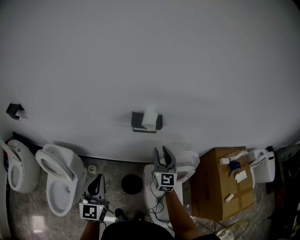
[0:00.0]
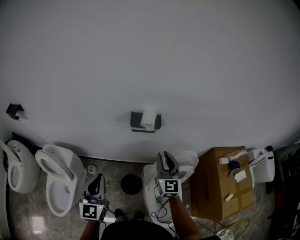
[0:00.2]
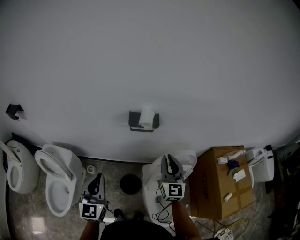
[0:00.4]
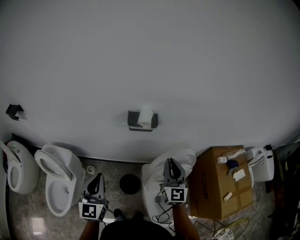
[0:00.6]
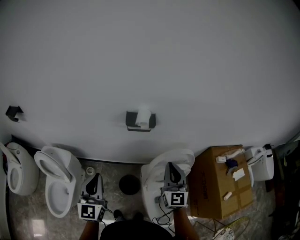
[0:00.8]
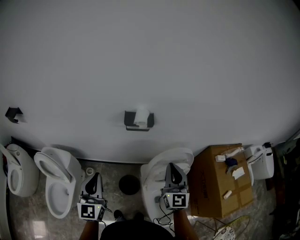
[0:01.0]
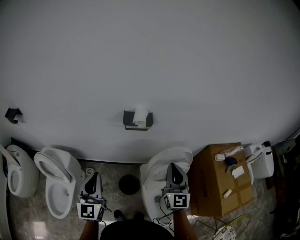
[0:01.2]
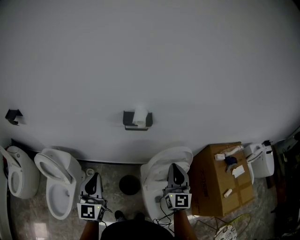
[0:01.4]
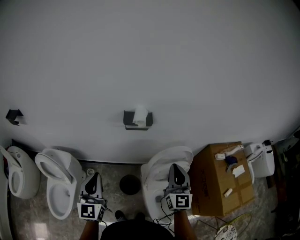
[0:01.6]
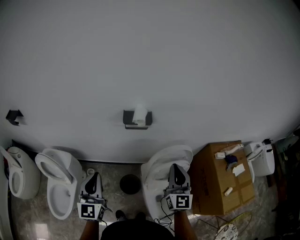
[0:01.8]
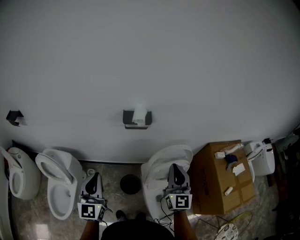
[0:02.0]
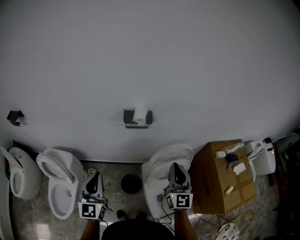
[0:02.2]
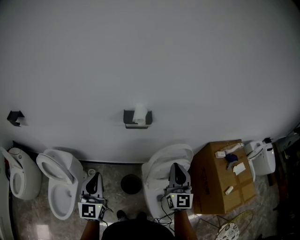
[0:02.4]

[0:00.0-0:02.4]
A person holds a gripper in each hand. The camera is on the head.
0:00.0 to 0:01.2: The right gripper travels backward, to the right and upward by roughly 15 cm.
0:01.2 to 0:02.4: The grippers move only a little.

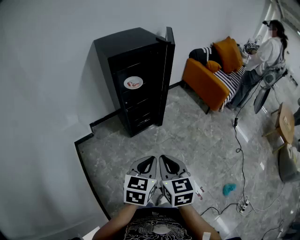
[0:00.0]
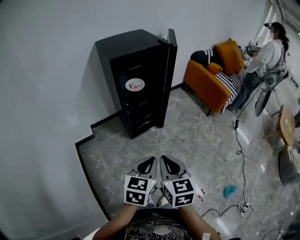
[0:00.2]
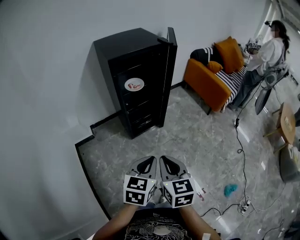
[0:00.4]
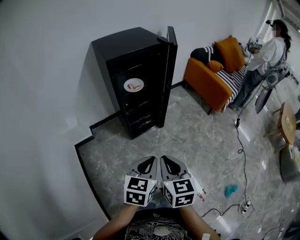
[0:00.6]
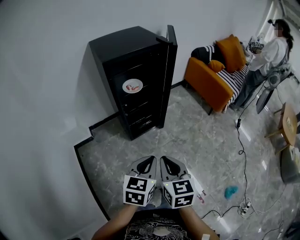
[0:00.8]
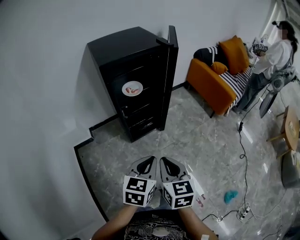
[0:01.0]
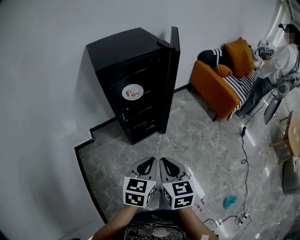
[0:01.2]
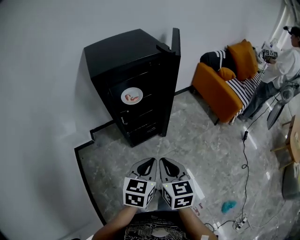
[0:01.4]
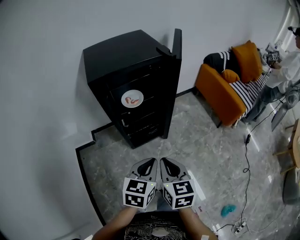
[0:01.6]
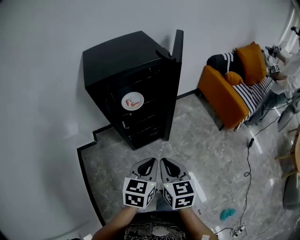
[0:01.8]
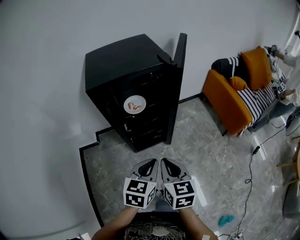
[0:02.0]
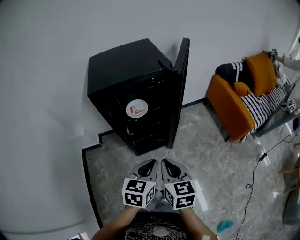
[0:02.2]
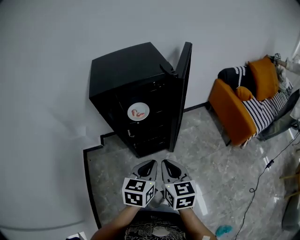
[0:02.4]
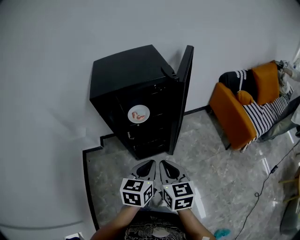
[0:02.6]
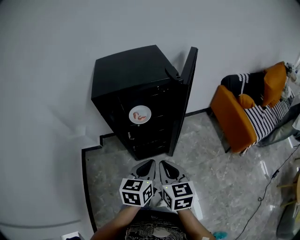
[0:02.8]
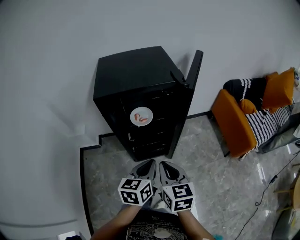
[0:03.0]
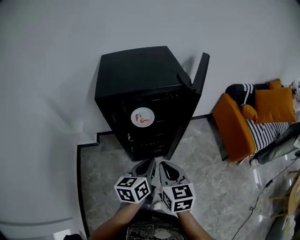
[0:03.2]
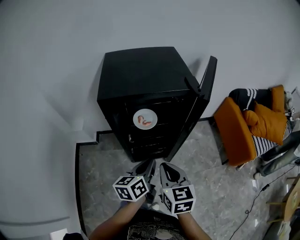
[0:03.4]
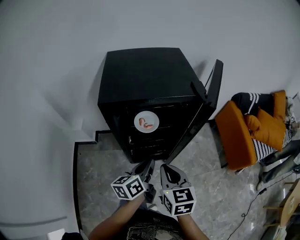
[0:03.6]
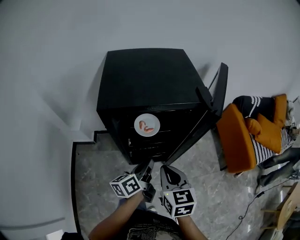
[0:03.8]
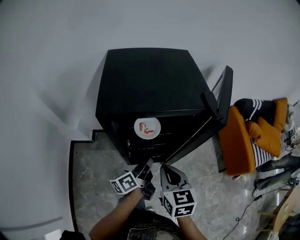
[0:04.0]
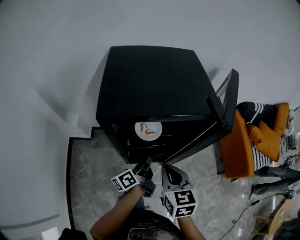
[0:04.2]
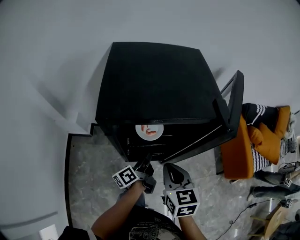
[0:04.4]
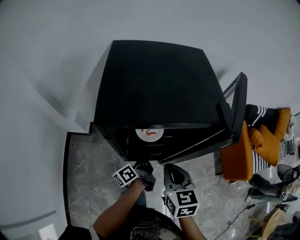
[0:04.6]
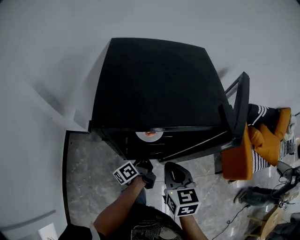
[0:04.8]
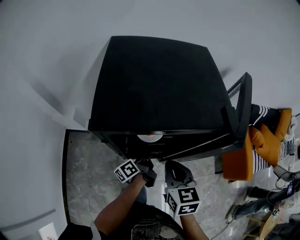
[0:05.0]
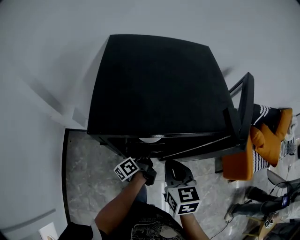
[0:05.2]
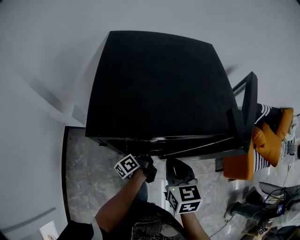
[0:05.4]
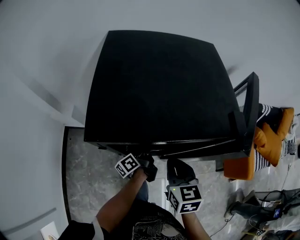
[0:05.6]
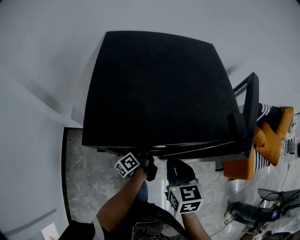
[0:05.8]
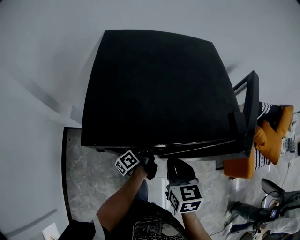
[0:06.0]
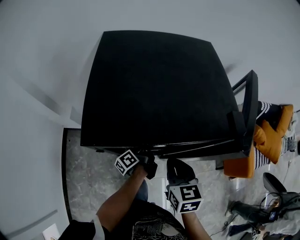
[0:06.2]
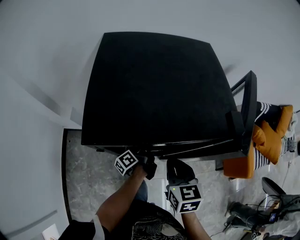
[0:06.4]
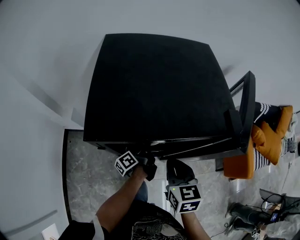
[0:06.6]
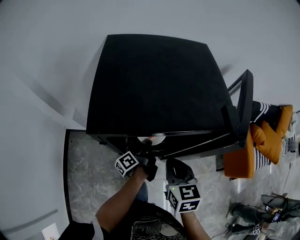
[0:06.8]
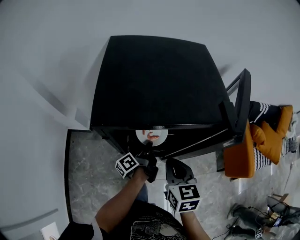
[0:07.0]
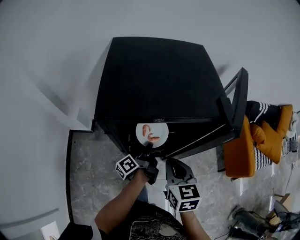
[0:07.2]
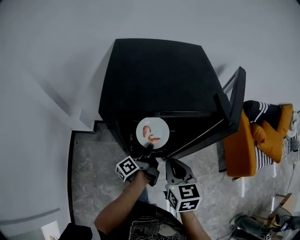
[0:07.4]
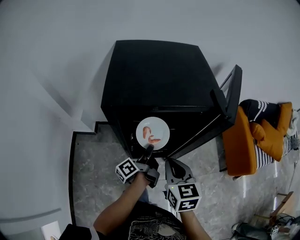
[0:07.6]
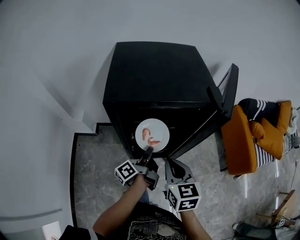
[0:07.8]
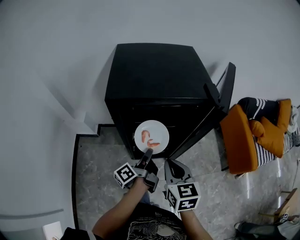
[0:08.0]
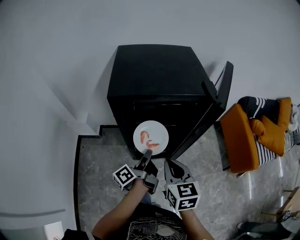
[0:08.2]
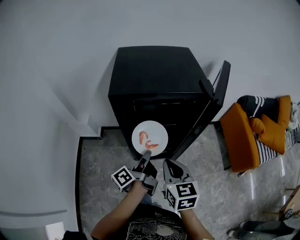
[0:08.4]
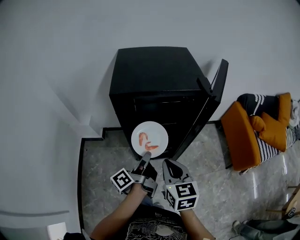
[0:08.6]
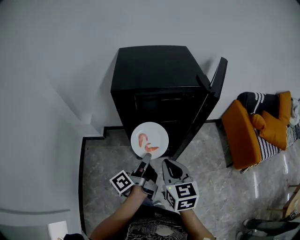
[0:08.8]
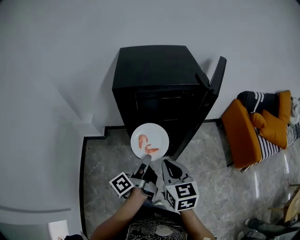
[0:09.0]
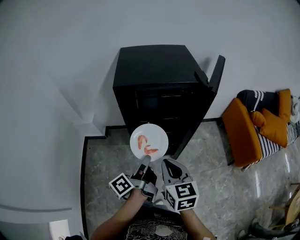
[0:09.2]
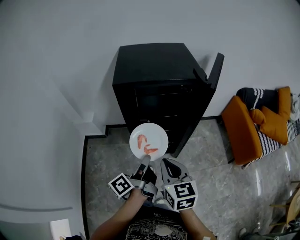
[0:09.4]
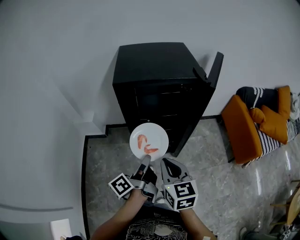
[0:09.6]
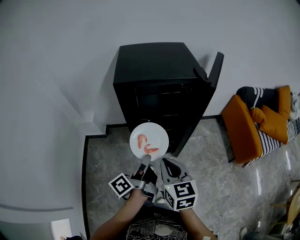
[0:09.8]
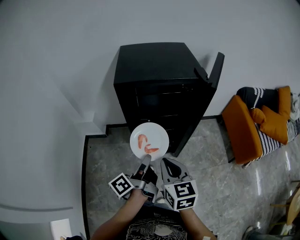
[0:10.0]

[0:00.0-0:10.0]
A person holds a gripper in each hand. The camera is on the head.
0:00.0 to 0:01.4: Both grippers travel together forward, about 20 cm.
0:01.4 to 0:02.8: The right gripper goes roughly 15 cm forward and to the right. The left gripper goes about 15 cm forward.
0:02.8 to 0:04.2: The left gripper is displaced forward and downward by about 25 cm, and rotates around the line of its fingers by roughly 60 degrees, counterclockwise from behind; the right gripper shifts some 15 cm forward.
0:04.2 to 0:05.8: The right gripper heads forward, covering about 10 cm; the left gripper moves forward and downward, roughly 15 cm.
0:05.8 to 0:07.2: The left gripper goes about 10 cm upward and backward, while the right gripper heads backward, covering approximately 5 cm.
0:07.2 to 0:08.6: The left gripper moves backward and upward, about 20 cm, while the right gripper heads backward, covering about 15 cm.
0:08.6 to 0:10.0: The two grippers go approximately 5 cm backward.

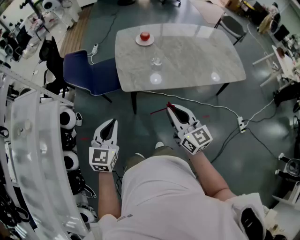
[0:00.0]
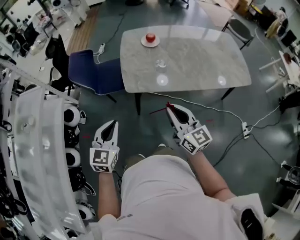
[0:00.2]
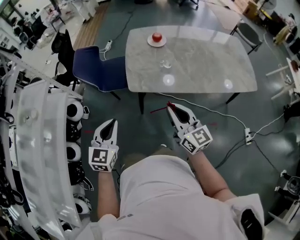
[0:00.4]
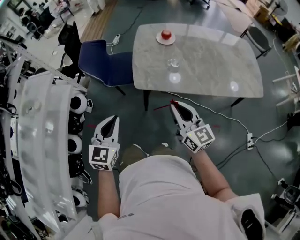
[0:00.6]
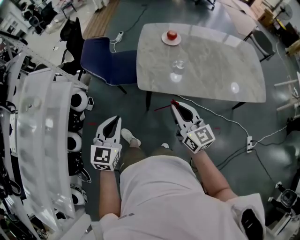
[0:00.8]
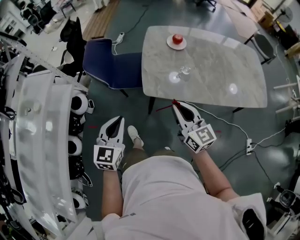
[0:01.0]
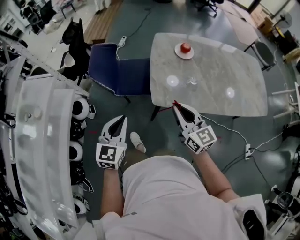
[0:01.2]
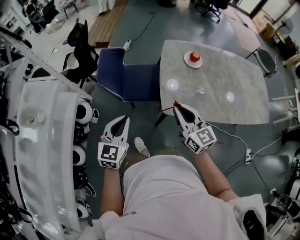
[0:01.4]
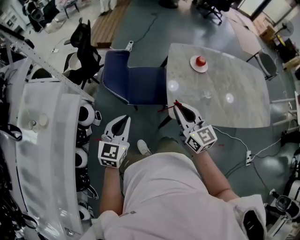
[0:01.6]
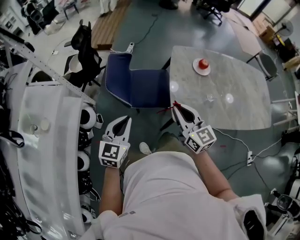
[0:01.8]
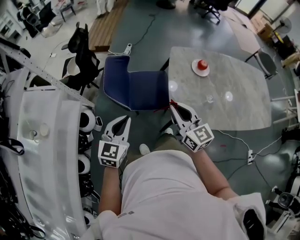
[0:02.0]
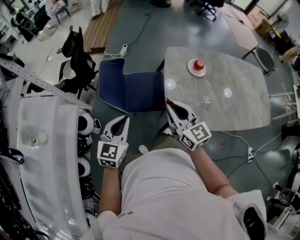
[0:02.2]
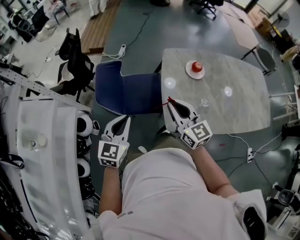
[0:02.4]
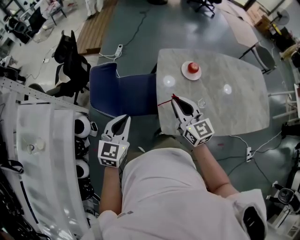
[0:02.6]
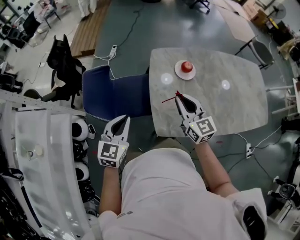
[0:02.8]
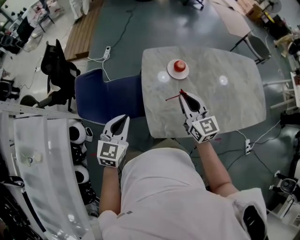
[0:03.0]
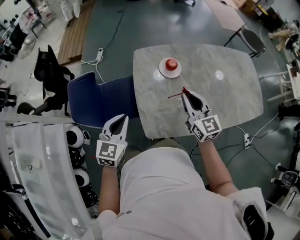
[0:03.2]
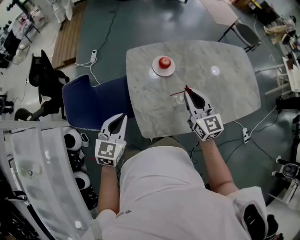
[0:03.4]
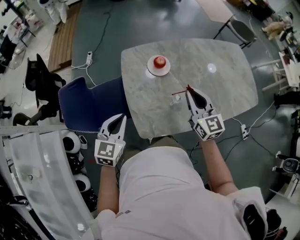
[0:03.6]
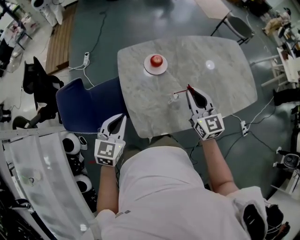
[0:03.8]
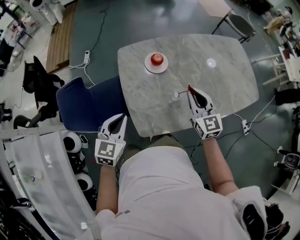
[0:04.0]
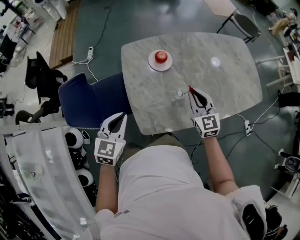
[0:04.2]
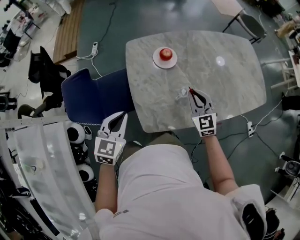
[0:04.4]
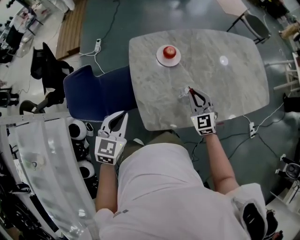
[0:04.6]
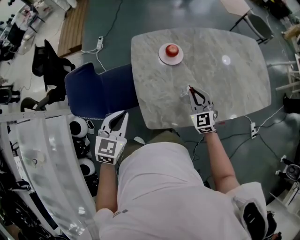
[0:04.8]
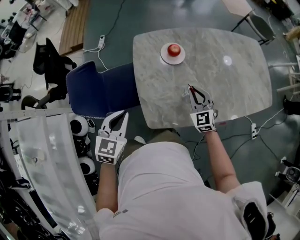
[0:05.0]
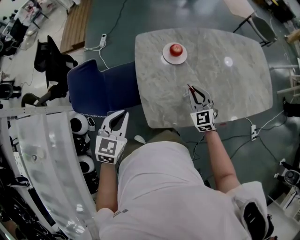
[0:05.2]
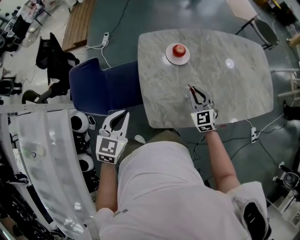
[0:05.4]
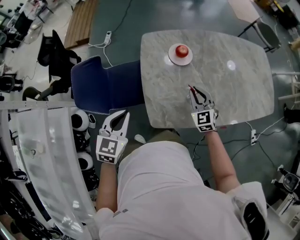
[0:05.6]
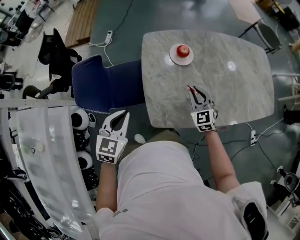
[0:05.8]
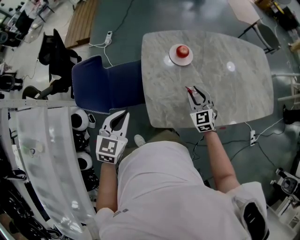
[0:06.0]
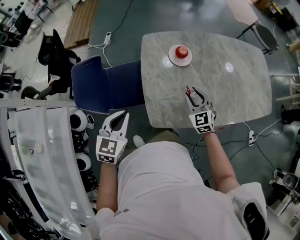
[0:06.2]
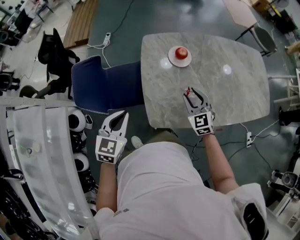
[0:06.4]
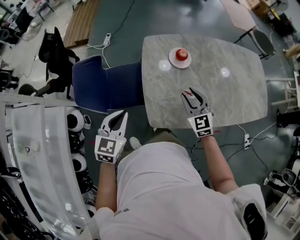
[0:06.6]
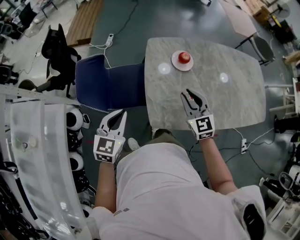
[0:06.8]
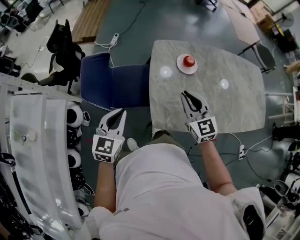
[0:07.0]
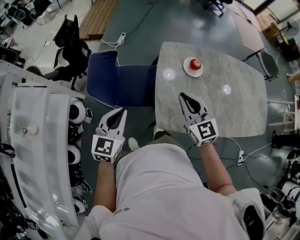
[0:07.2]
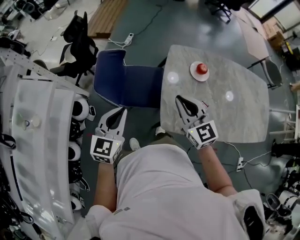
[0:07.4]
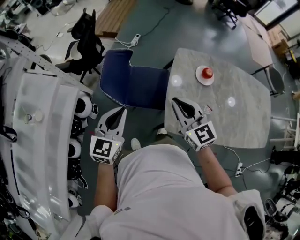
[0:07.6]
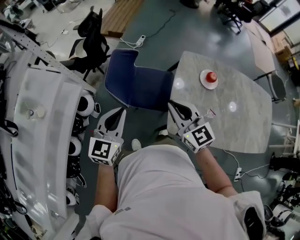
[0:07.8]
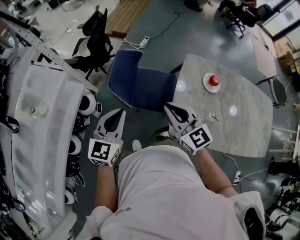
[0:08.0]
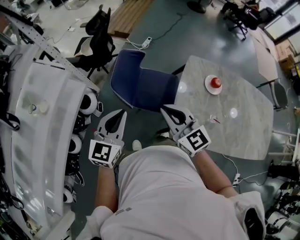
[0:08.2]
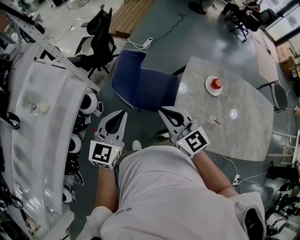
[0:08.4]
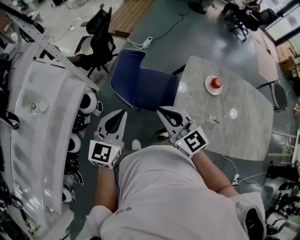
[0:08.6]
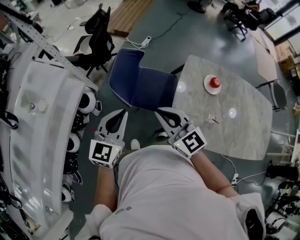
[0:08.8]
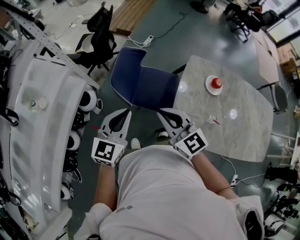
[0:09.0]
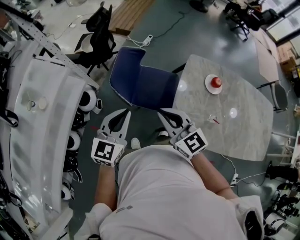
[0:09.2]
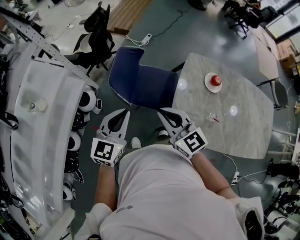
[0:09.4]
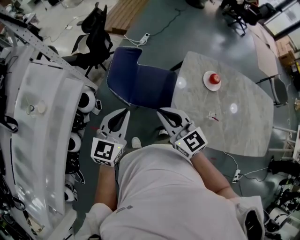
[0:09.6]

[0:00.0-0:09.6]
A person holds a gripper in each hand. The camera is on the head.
0:00.0 to 0:01.6: The two grippers go some 30 cm forward and to the left.
0:01.6 to 0:03.2: The right gripper moves to the right and forward, roughly 30 cm. Meanwhile the left gripper goes some 25 cm forward and to the right.
0:03.2 to 0:04.8: The right gripper is displaced downward and to the right by roughly 15 cm, and changes its angle by some 30 degrees.
0:04.8 to 0:06.4: The right gripper goes roughly 5 cm to the left, and opens.
0:06.4 to 0:08.0: The left gripper shifts by some 20 cm, and swivels approximately 30 degrees. Meanwhile the right gripper changes place by about 35 cm, rotates roughly 40 degrees, and closes.
0:08.0 to 0:09.6: The grippers make only small movements.

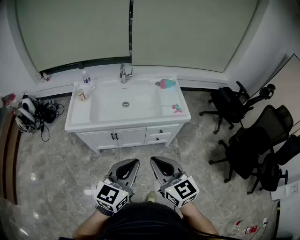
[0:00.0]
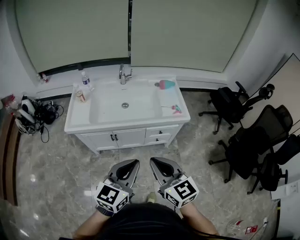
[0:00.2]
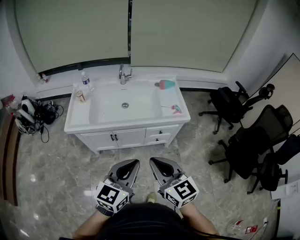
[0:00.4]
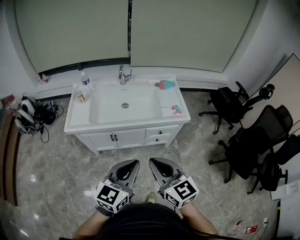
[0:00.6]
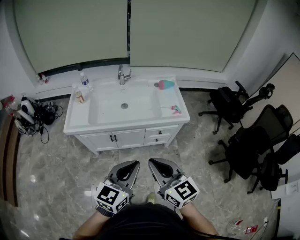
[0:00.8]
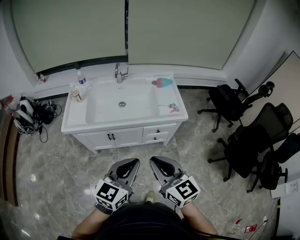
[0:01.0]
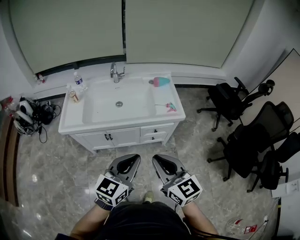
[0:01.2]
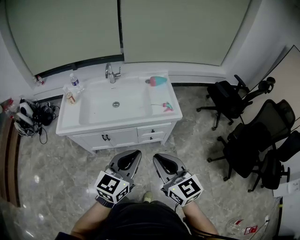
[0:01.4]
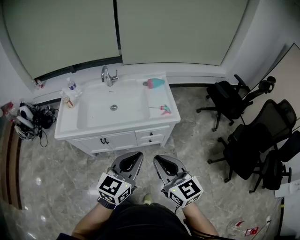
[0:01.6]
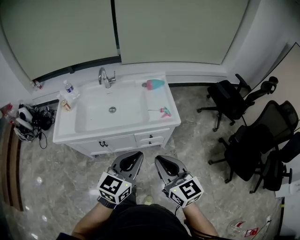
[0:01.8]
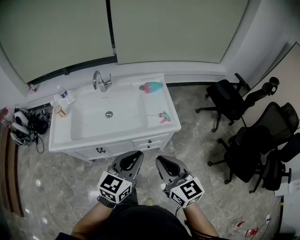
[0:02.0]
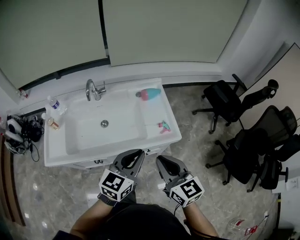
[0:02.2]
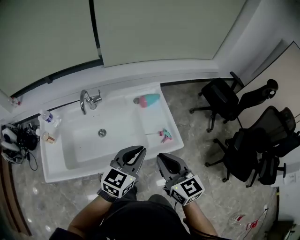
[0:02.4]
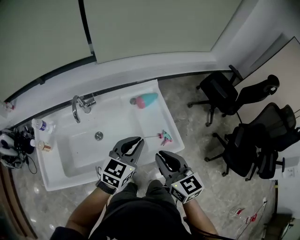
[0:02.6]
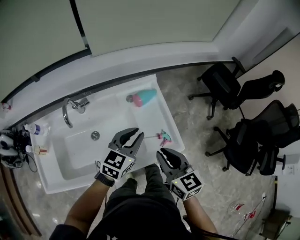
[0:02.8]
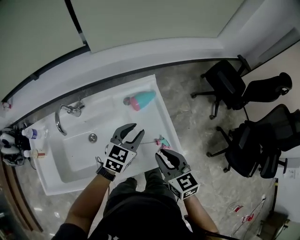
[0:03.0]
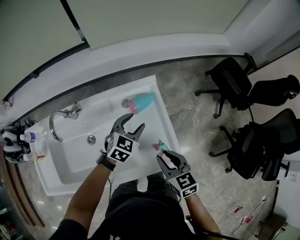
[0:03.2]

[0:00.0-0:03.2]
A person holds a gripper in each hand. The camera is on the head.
0:00.0 to 0:01.6: The two grippers go roughly 15 cm to the right and forward.
0:01.6 to 0:03.2: Both grippers are carried forward, some 60 cm. The left gripper swivels roughly 30 degrees, and opens its fingers. Meanwhile the right gripper moves downward, approximately 20 cm, and changes its angle by some 30 degrees.
